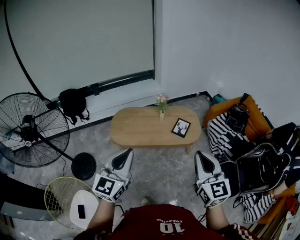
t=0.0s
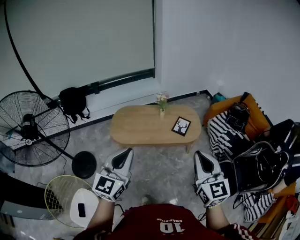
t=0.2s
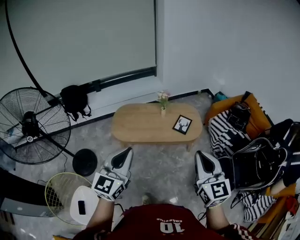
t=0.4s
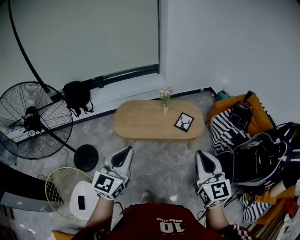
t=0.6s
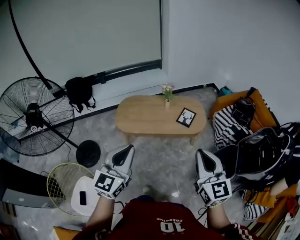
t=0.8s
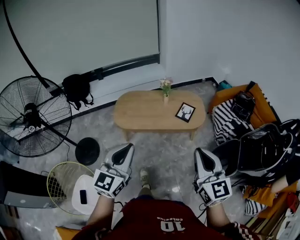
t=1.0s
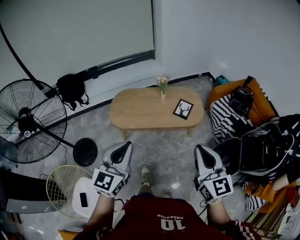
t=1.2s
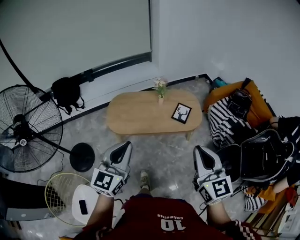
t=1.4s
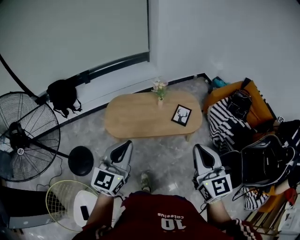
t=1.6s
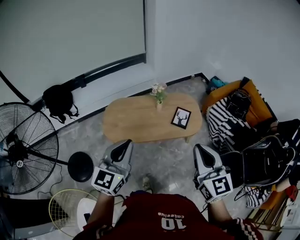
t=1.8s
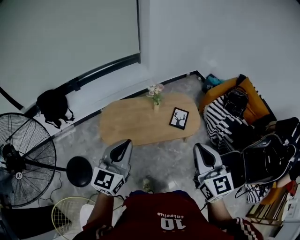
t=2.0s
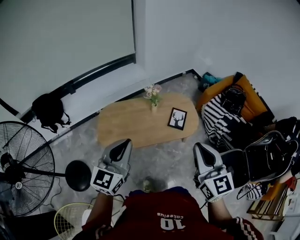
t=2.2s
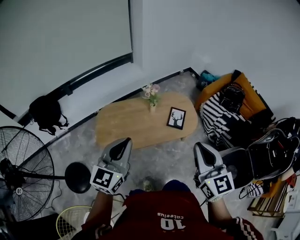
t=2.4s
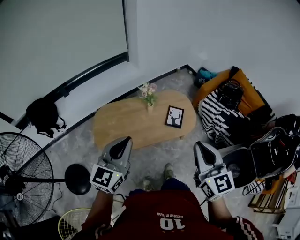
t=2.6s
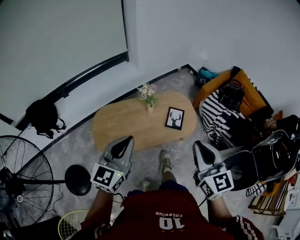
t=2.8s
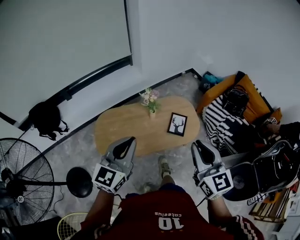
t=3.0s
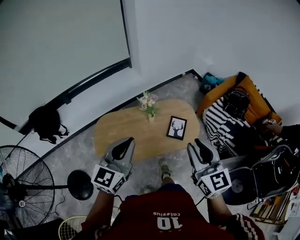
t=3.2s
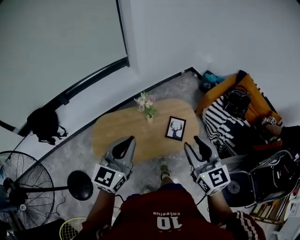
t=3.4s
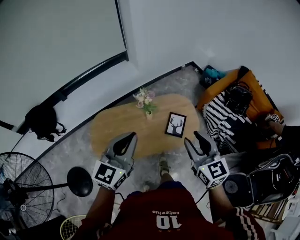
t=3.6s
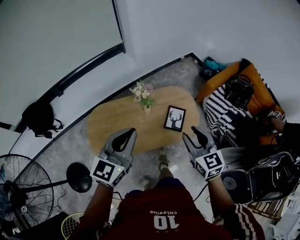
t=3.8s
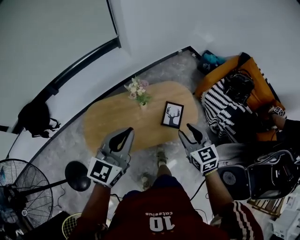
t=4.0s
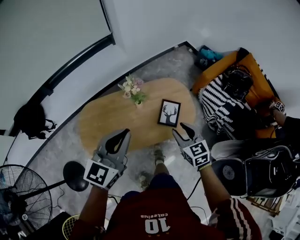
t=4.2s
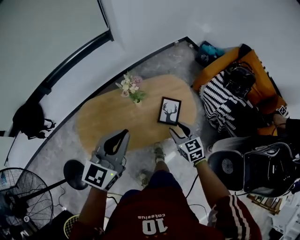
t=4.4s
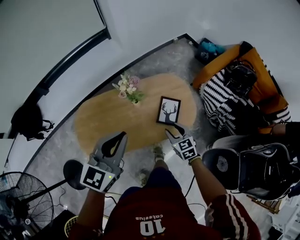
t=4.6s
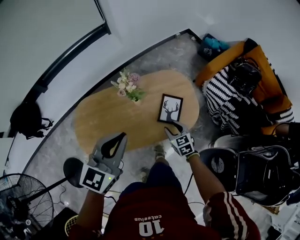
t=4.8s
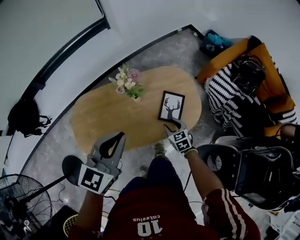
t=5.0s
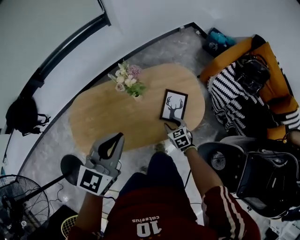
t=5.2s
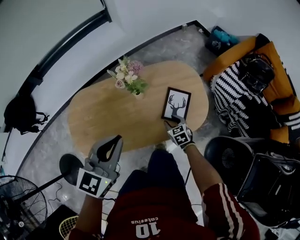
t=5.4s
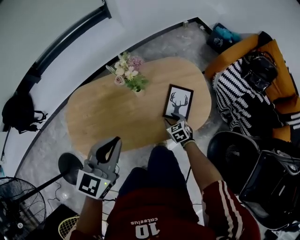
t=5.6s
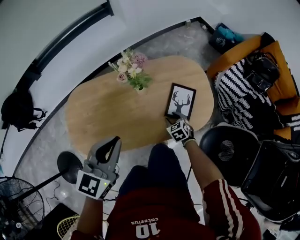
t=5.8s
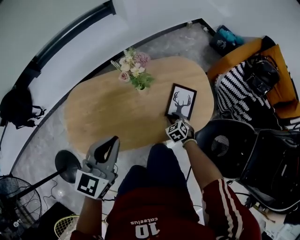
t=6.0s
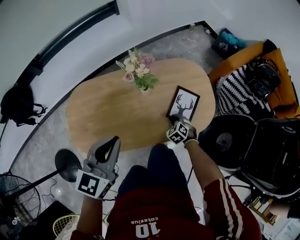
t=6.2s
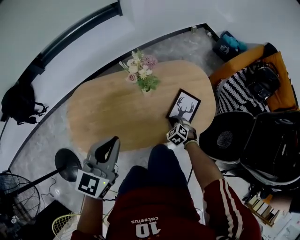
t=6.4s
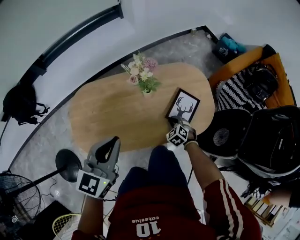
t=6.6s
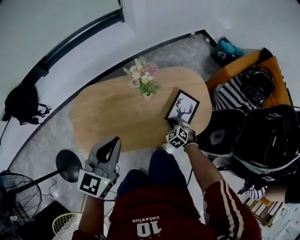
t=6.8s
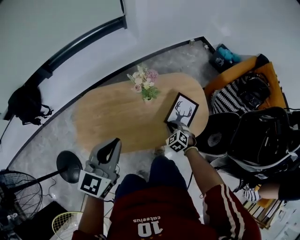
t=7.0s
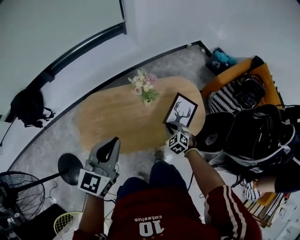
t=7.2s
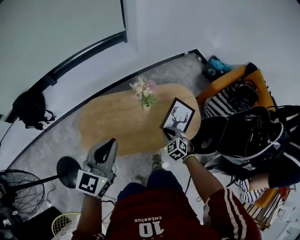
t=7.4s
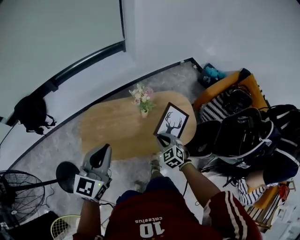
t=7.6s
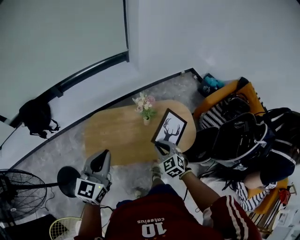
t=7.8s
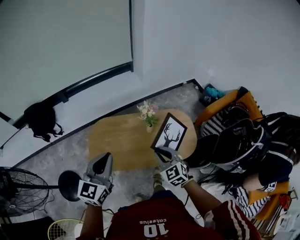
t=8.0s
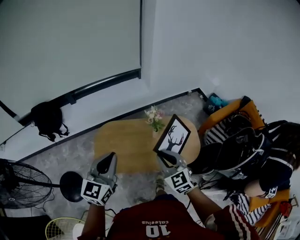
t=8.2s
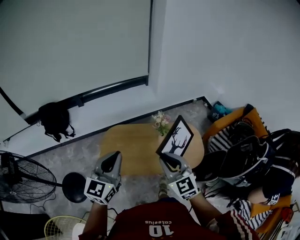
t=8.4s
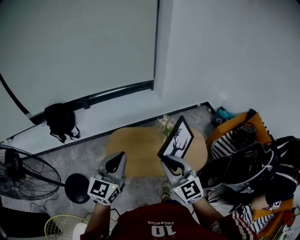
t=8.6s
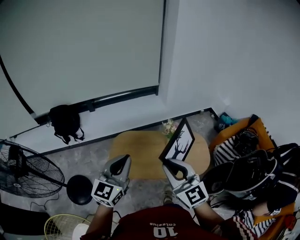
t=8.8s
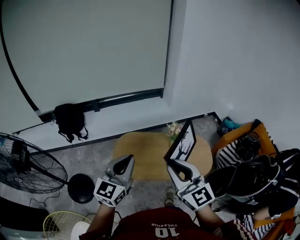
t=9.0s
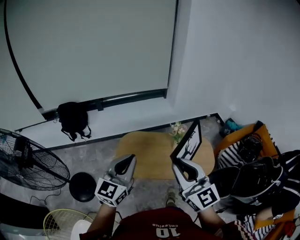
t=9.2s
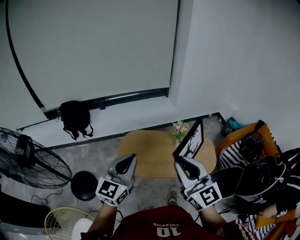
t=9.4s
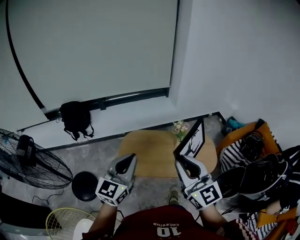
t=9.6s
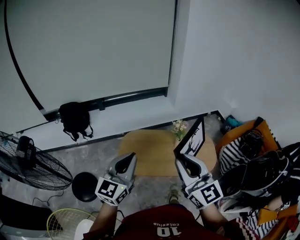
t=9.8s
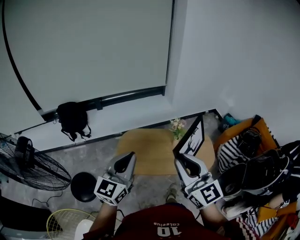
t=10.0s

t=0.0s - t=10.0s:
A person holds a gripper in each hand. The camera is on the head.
t=0.0s - t=1.4s: The left gripper moves downward, some 5 cm.
t=1.4s - t=2.8s: Both grippers move forward, about 20 cm.
t=2.8s - t=4.2s: The right gripper shifts some 35 cm downward and forward, rotates about 20 degrees, and opens, while the left gripper heads forward, to the right and downward, covering approximately 20 cm.
t=4.2s - t=5.8s: The right gripper shifts about 40 cm downward, and swivels about 30 degrees, while the left gripper goes about 20 cm downward.
t=5.8s - t=7.2s: The two grippers go approximately 15 cm upward. The right gripper turns by roughly 20 degrees, and closes its fingers.
t=7.2s - t=8.6s: The right gripper shifts some 50 cm upward, and points its fingers some 50 degrees further upward. The left gripper moves upward, backward and to the left, about 25 cm.
t=8.6s - t=10.0s: The right gripper shifts about 10 cm upward and backward, while the left gripper heads backward and to the left, covering some 10 cm.

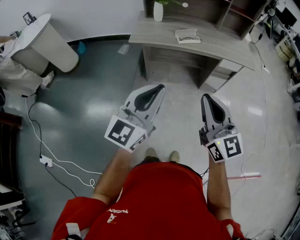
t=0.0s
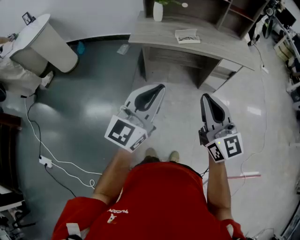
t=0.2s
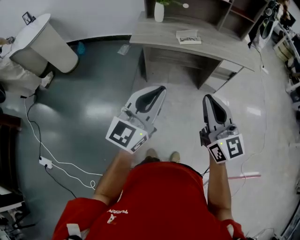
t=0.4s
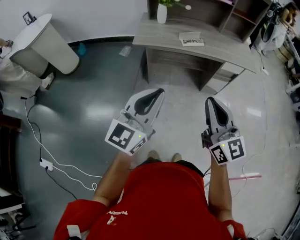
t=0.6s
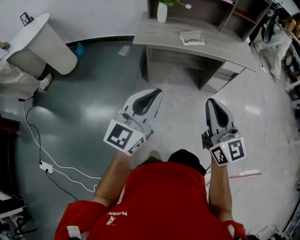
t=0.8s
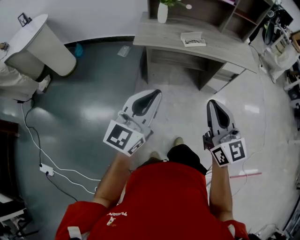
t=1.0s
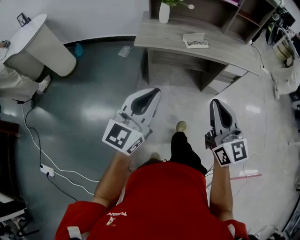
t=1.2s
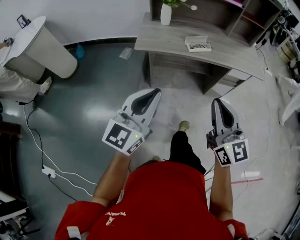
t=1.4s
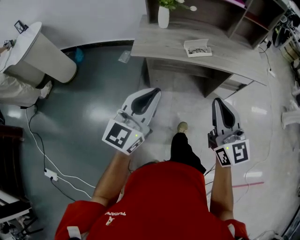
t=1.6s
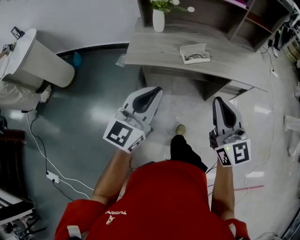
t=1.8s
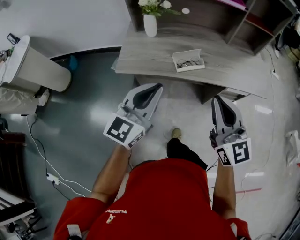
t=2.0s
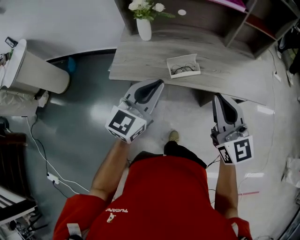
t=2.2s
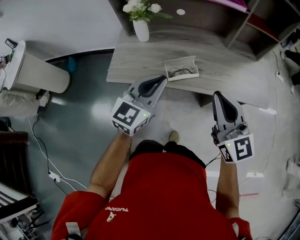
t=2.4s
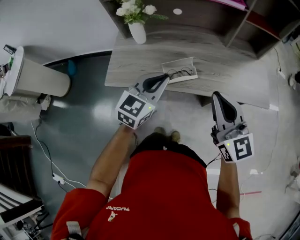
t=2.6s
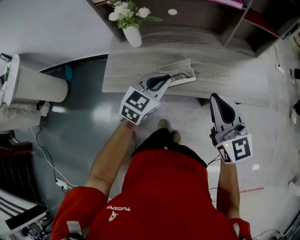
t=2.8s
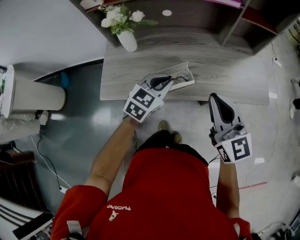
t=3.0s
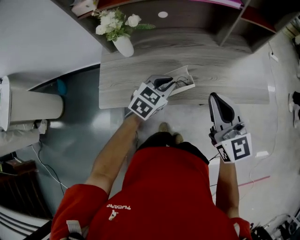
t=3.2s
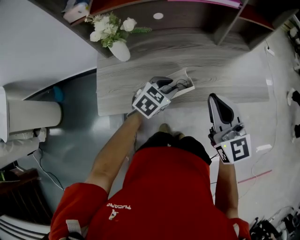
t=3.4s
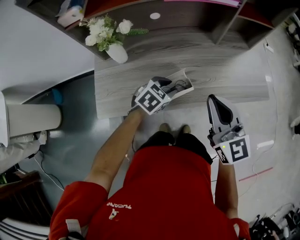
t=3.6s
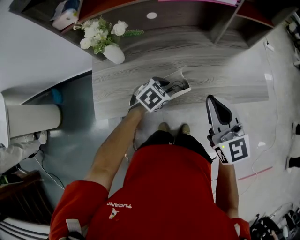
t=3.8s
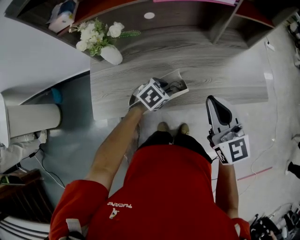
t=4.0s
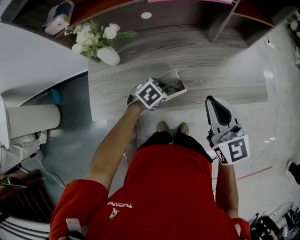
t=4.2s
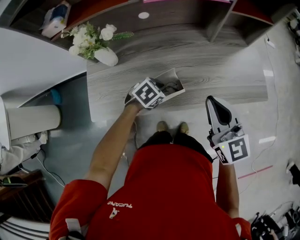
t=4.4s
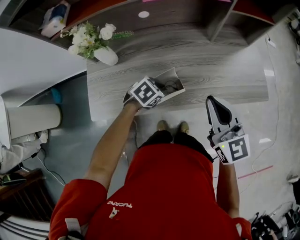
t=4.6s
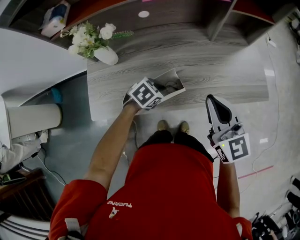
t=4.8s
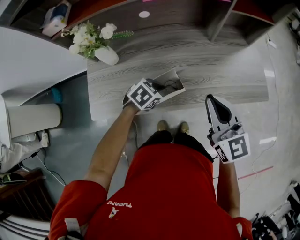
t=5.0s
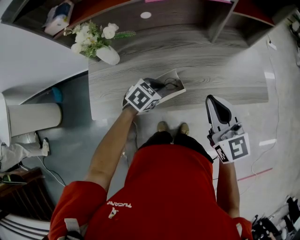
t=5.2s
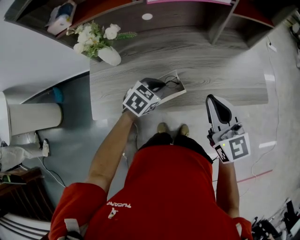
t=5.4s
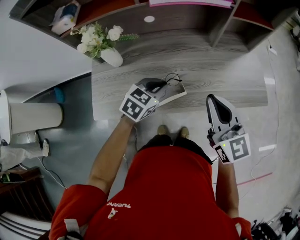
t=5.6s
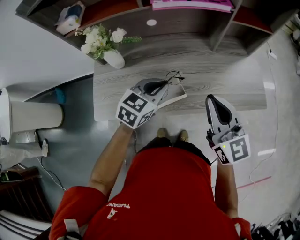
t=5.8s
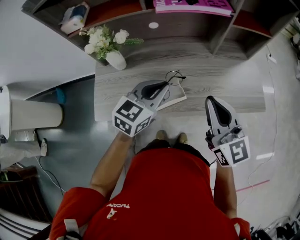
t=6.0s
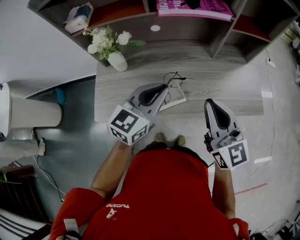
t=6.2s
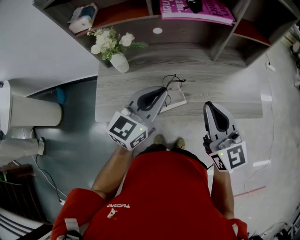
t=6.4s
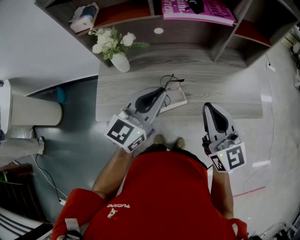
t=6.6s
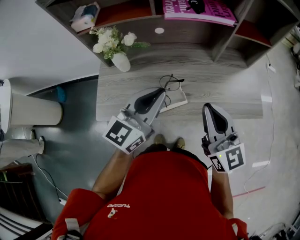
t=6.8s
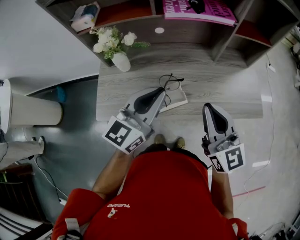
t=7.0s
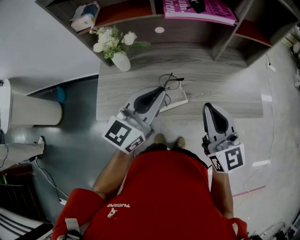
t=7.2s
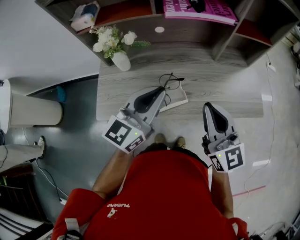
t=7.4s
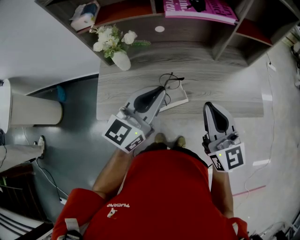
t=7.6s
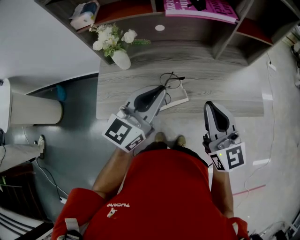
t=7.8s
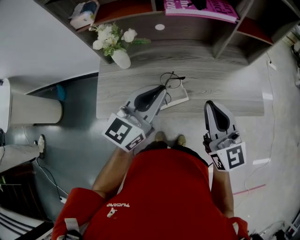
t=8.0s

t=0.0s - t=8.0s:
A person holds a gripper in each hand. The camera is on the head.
t=0.0s - t=1.6s: The right gripper shifts some 15 cm forward; the left gripper is displaced forward and to the left by roughly 15 cm.
t=1.6s - t=3.2s: The right gripper goes about 35 cm forward, while the left gripper is displaced forward, downward and to the right by about 50 cm, and points its fingers approximately 40 degrees further downward.
t=3.2s - t=4.8s: The right gripper travels forward by roughly 5 cm; the left gripper shifts approximately 10 cm downward, turns by approximately 30 degrees, and opens, then closes again.
t=4.8s - t=6.4s: The left gripper shifts roughly 25 cm upward, and points its fingers about 60 degrees further upward. Meanwhile the right gripper is displaced upward by approximately 5 cm.
t=6.4s - t=8.0s: The grippers stay close to where they were, moving slightly.

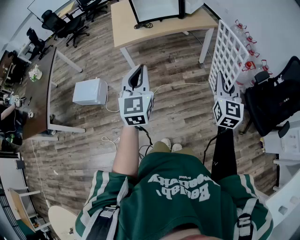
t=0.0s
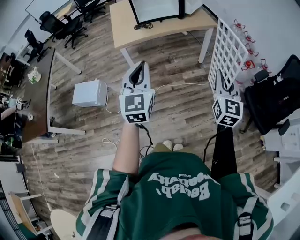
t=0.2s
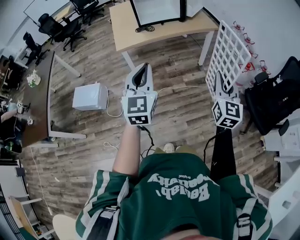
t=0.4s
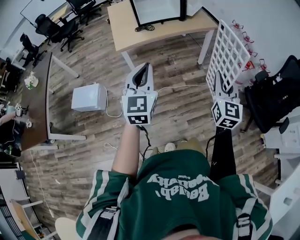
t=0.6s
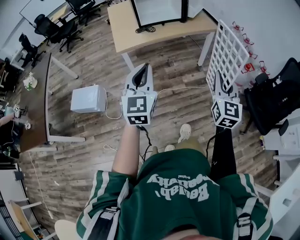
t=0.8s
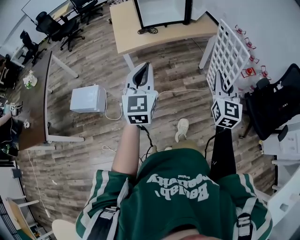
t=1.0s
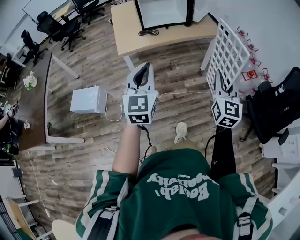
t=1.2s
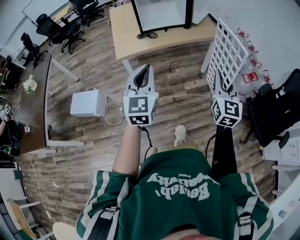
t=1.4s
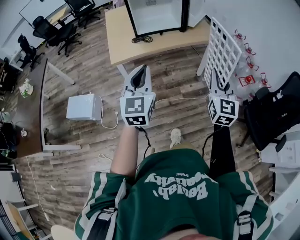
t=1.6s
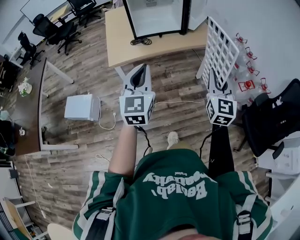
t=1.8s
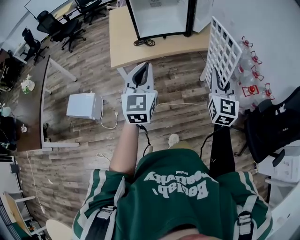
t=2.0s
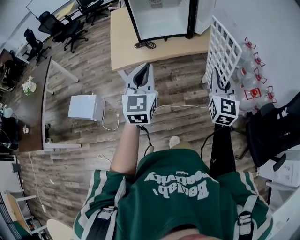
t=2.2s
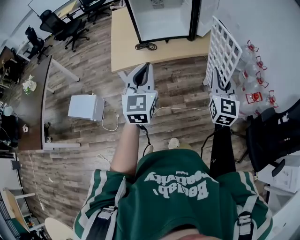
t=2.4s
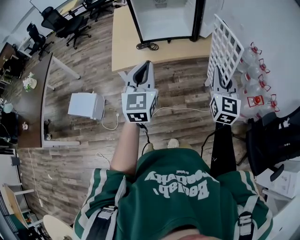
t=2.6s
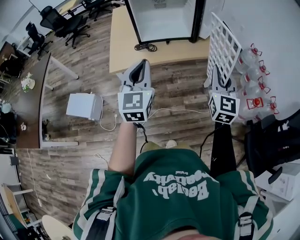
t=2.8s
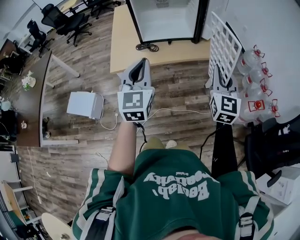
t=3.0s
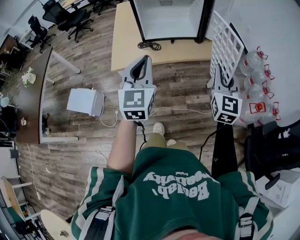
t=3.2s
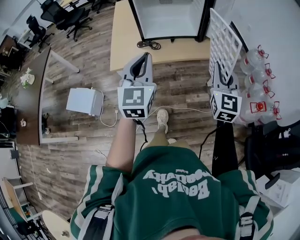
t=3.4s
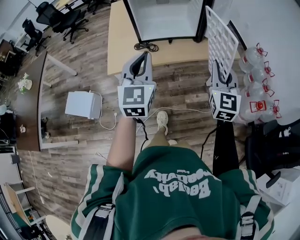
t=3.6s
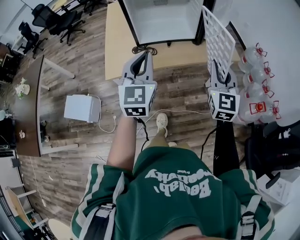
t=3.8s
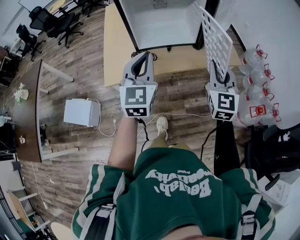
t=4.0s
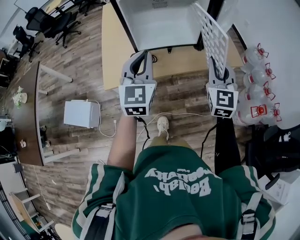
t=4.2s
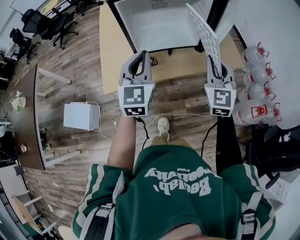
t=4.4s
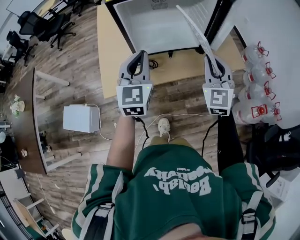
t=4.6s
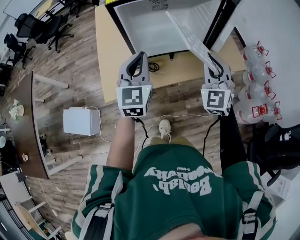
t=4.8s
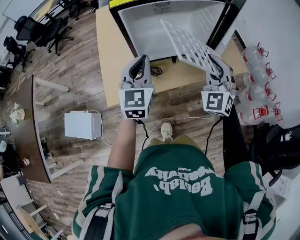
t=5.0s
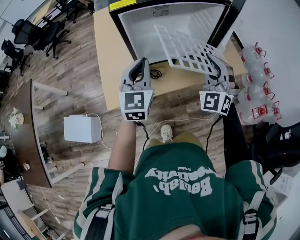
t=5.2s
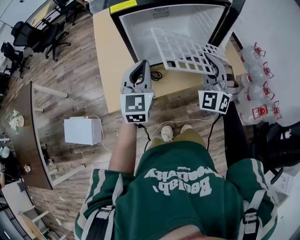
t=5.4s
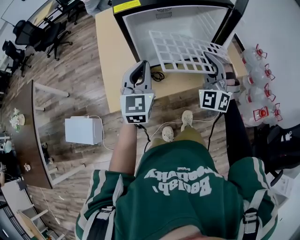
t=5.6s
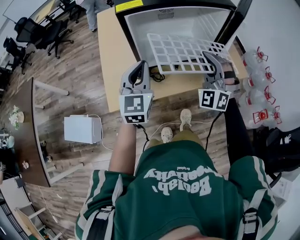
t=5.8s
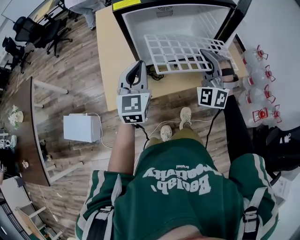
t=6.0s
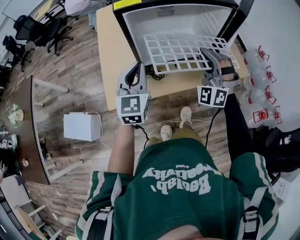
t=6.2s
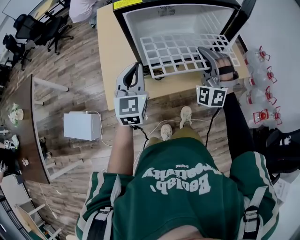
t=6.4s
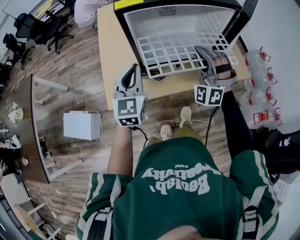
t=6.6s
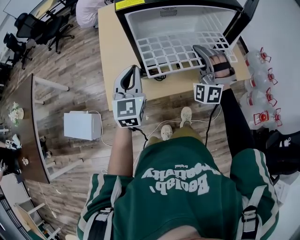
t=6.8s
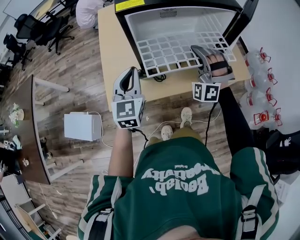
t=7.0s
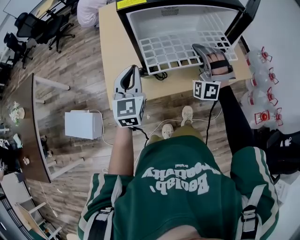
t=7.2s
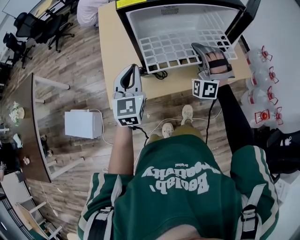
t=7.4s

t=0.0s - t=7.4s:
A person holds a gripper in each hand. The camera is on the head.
t=0.0s - t=1.4s: Both grippers travel together forward and to the left, approximately 15 cm.
t=1.4s - t=3.0s: Both grippers move forward, roughly 25 cm.
t=3.0s - t=4.4s: The two grippers go about 25 cm forward.
t=4.4s - t=6.0s: Both grippers travel together forward and to the left, approximately 10 cm. The right gripper rolls counterclockwise, seen from behind, by approximately 50 degrees.
t=6.0s - t=7.4s: The right gripper is displaced forward by about 5 cm.
